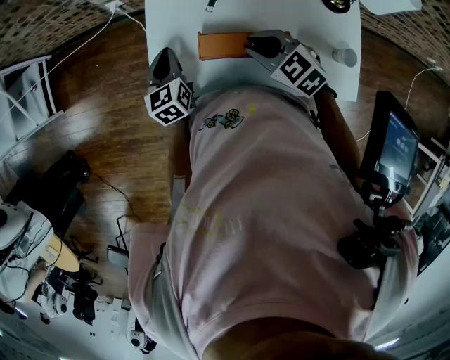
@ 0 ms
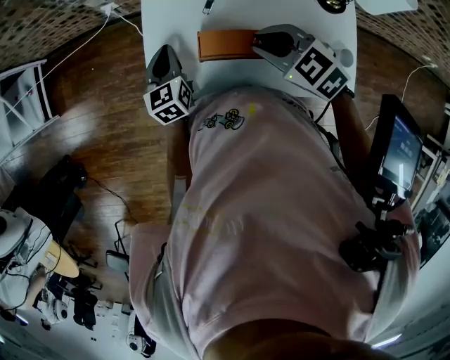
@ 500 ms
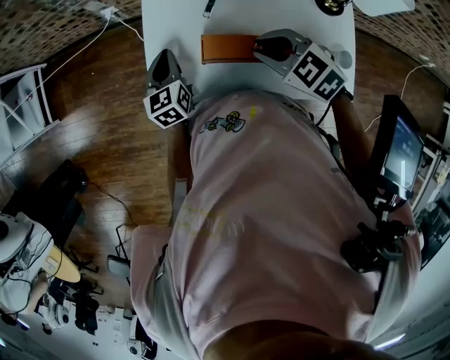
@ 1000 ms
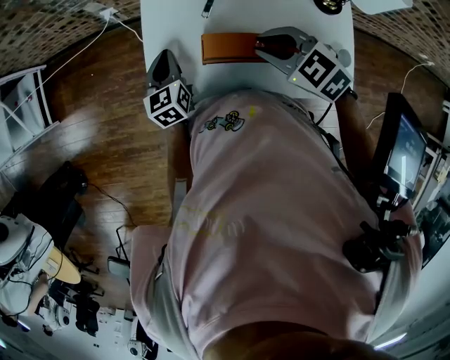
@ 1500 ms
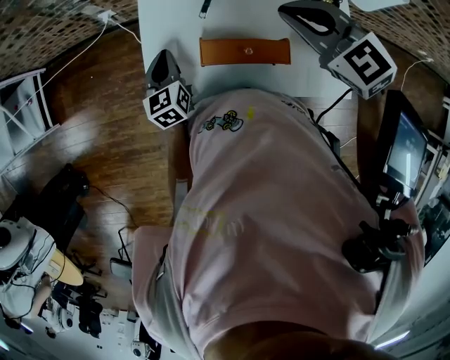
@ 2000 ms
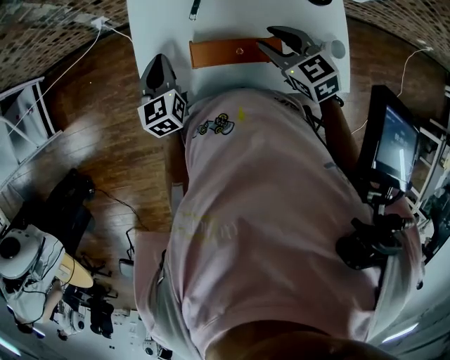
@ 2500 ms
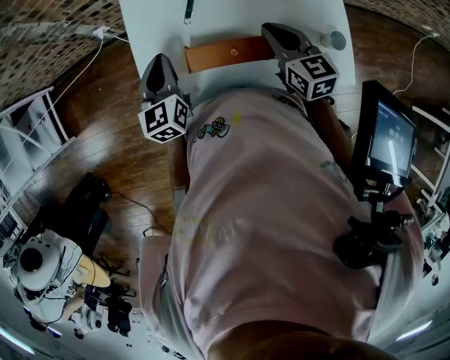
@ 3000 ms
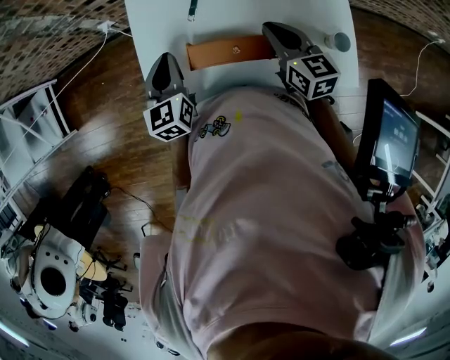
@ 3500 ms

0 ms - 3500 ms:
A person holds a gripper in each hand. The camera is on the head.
0 ms - 2000 ms: The right gripper shifts approximately 15 cm upward.
2000 ms - 3500 ms: The left gripper is displaced upward by roughly 5 cm; the right gripper moves downward, about 15 cm, turns by roughly 40 degrees, and opens and closes again.

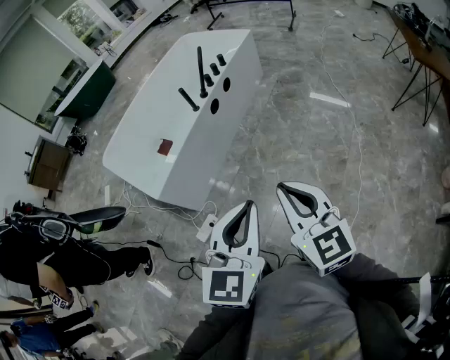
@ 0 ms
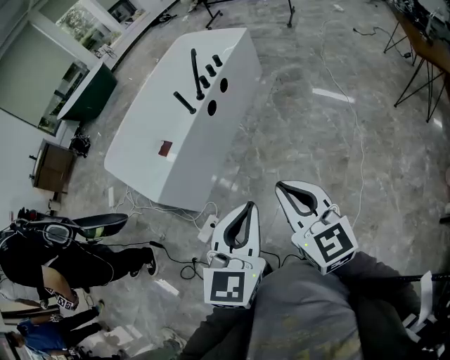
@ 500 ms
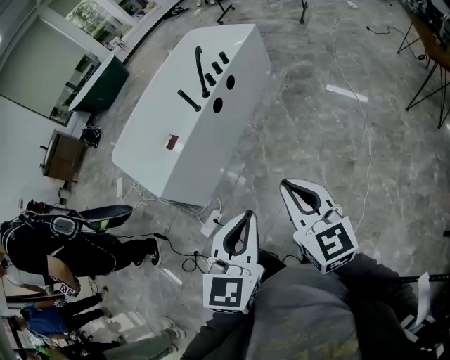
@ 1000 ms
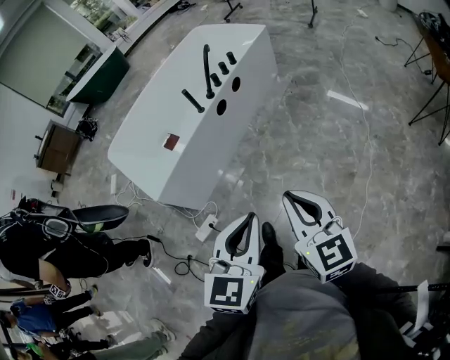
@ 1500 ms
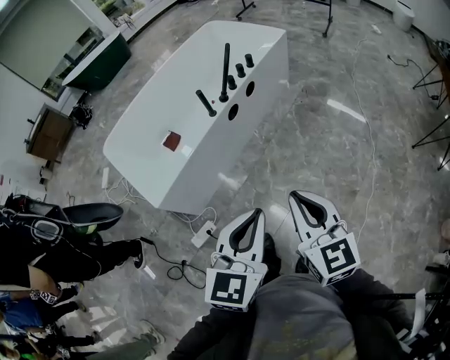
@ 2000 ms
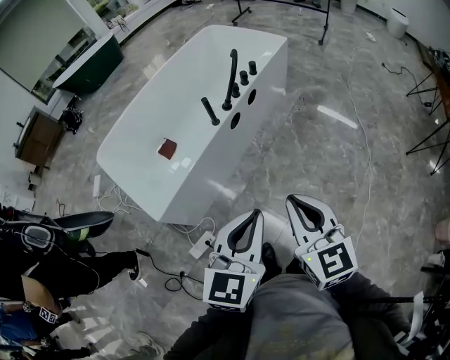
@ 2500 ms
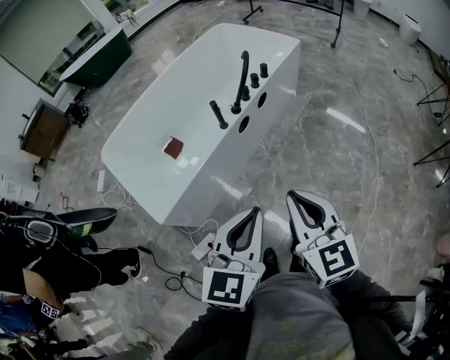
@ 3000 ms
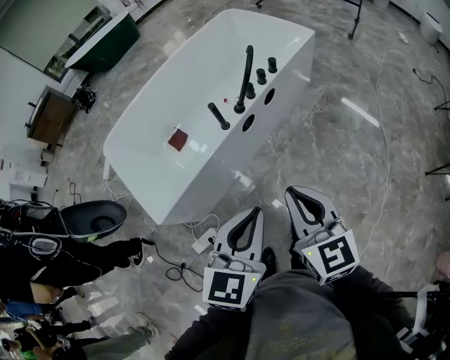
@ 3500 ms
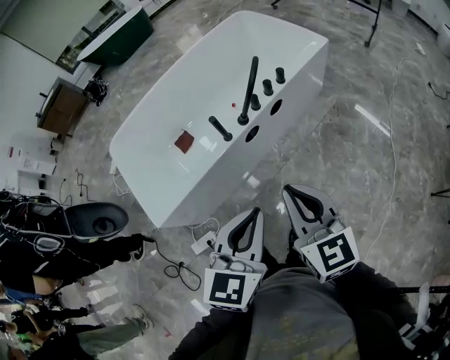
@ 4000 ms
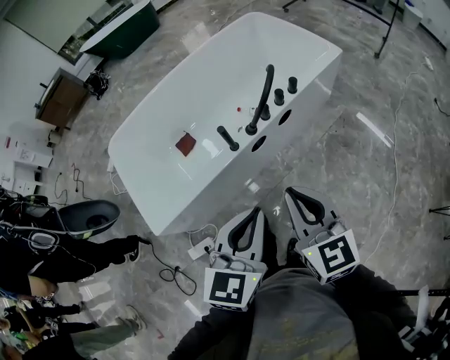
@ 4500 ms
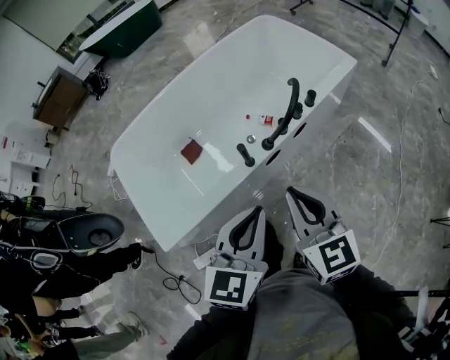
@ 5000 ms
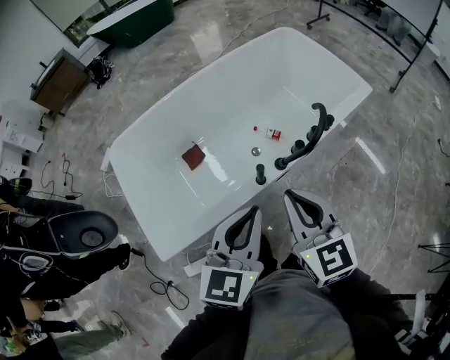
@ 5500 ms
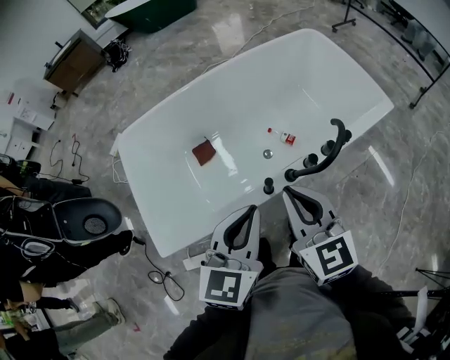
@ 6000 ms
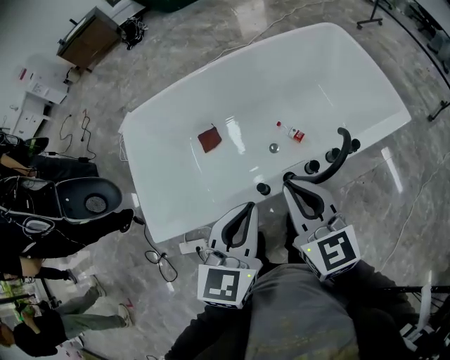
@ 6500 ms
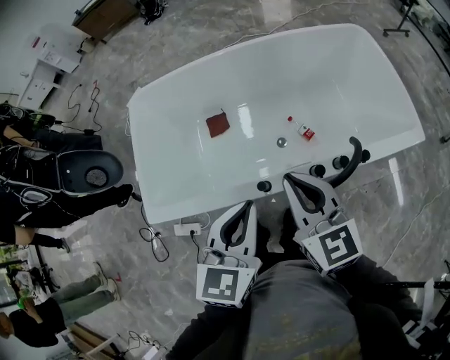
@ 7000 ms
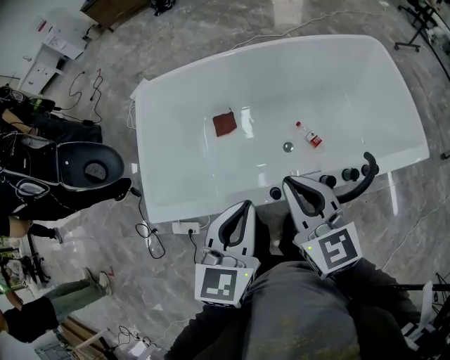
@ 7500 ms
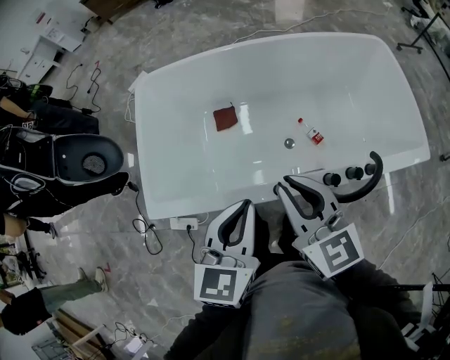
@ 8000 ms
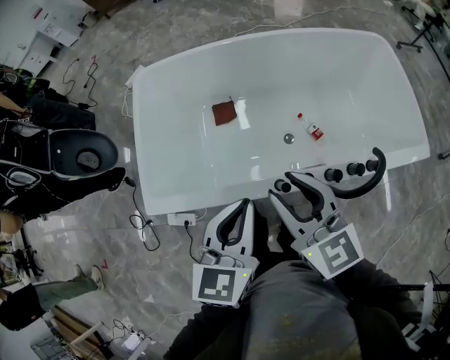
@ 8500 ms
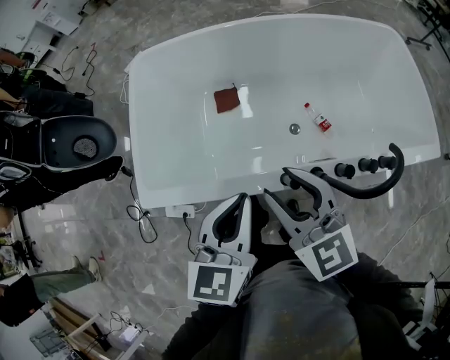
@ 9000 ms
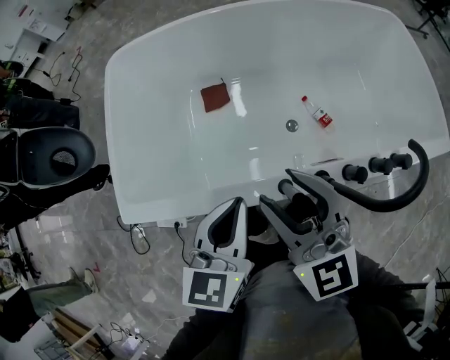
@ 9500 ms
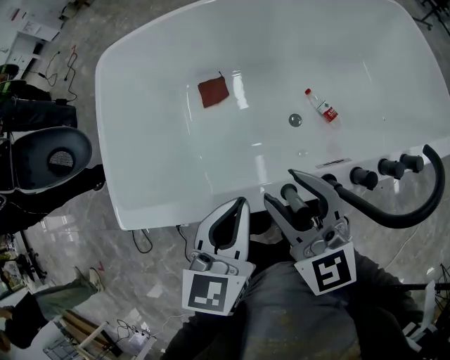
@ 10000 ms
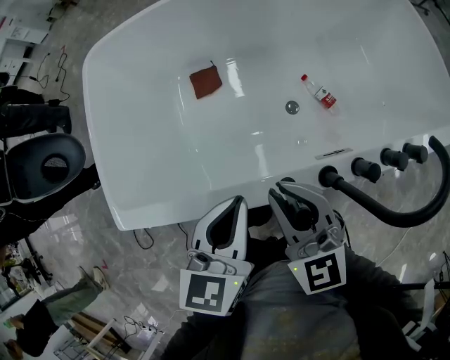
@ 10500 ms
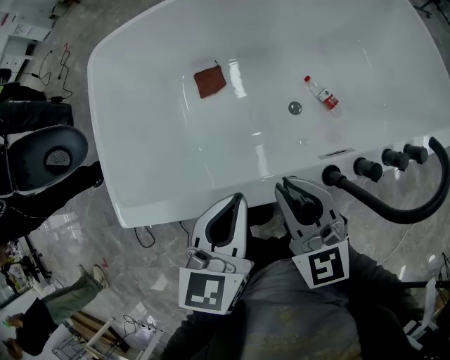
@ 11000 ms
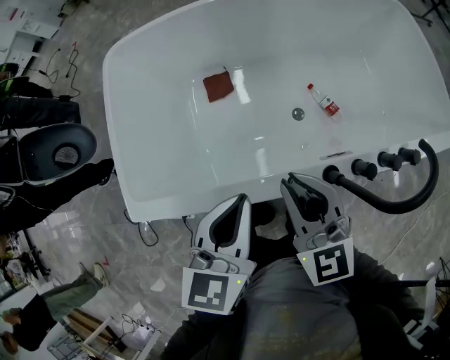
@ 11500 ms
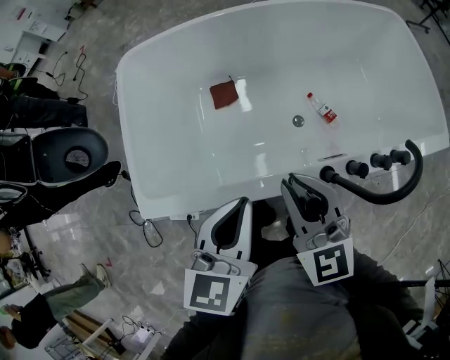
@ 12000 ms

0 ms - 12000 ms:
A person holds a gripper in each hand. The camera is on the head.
0 ms - 2000 ms: Both grippers travel together forward, some 15 cm.
2000 ms - 4000 ms: The grippers both shift forward by about 25 cm.
4000 ms - 6000 ms: The grippers both shift forward and to the left by approximately 30 cm.
6000 ms - 8000 ms: The two grippers go some 5 cm forward. The left gripper turns by roughly 20 degrees, while the right gripper turns by some 30 degrees.
8000 ms - 10000 ms: Both grippers move downward, some 20 cm. The right gripper opens its fingers.
10000 ms - 12000 ms: The grippers both shift upward by about 10 cm. The right gripper closes its fingers.

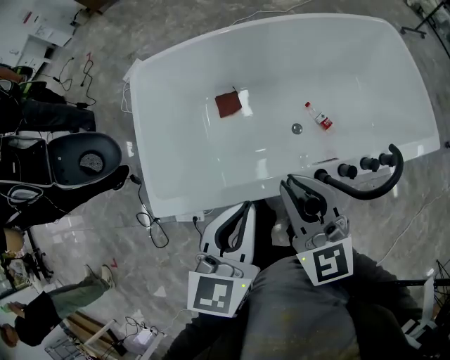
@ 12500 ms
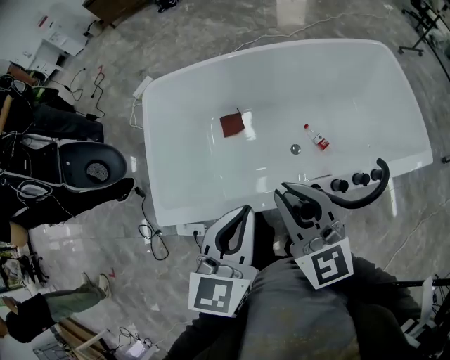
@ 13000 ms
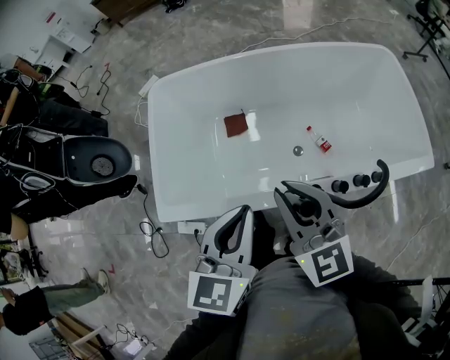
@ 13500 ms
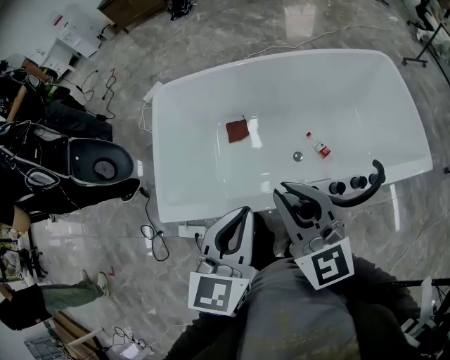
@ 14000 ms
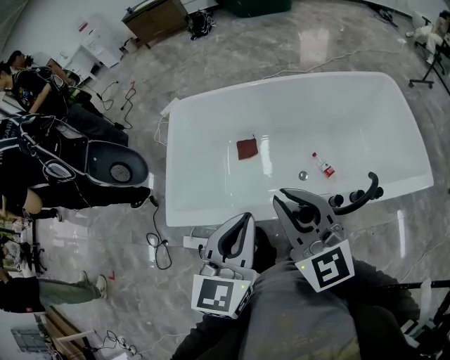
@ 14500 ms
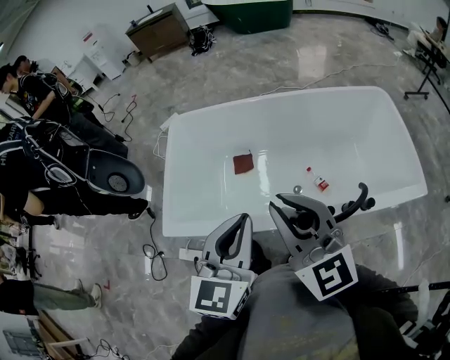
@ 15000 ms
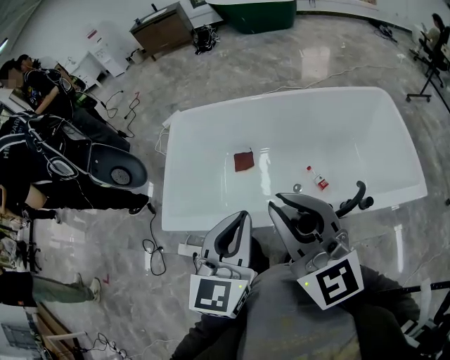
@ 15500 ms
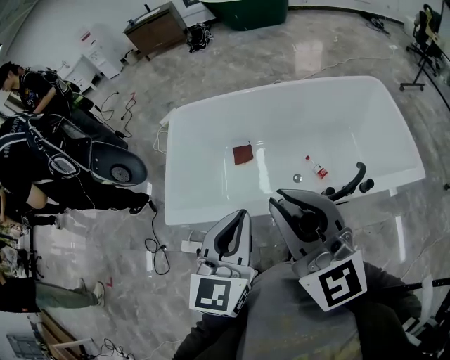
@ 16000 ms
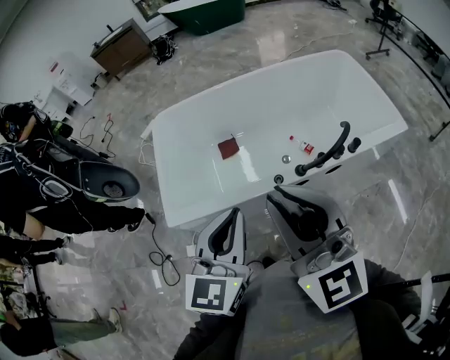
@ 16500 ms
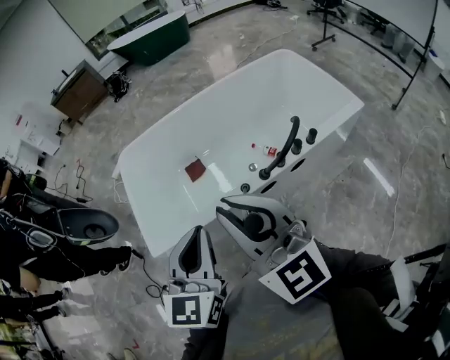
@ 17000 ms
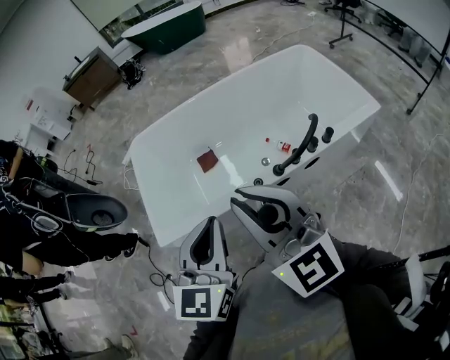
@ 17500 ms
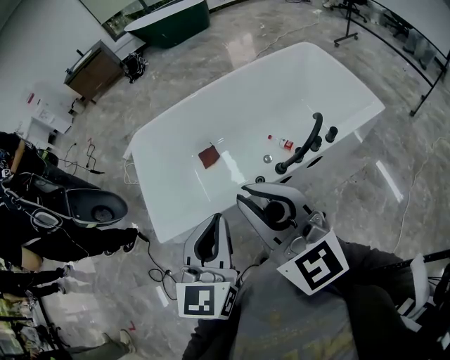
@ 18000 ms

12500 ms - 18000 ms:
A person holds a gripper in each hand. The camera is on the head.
12500 ms - 14500 ms: Both grippers travel together upward and backward, some 10 cm.
14500 ms - 16000 ms: The left gripper goes approximately 5 cm backward. Meanwhile the right gripper shifts some 10 cm upward and backward.
16000 ms - 18000 ms: The two grippers go roughly 5 cm backward.

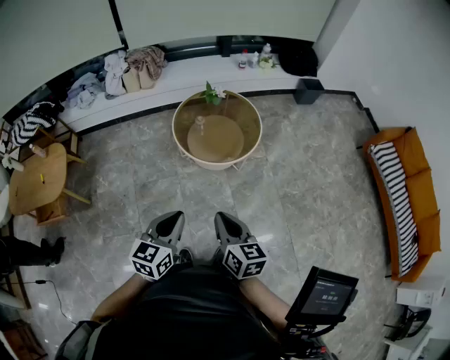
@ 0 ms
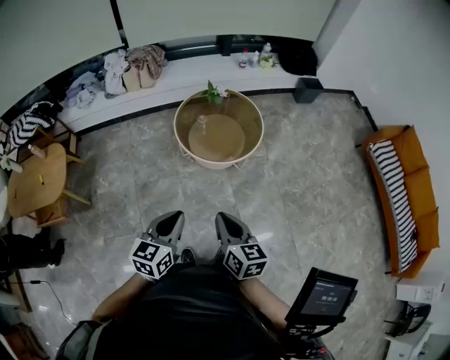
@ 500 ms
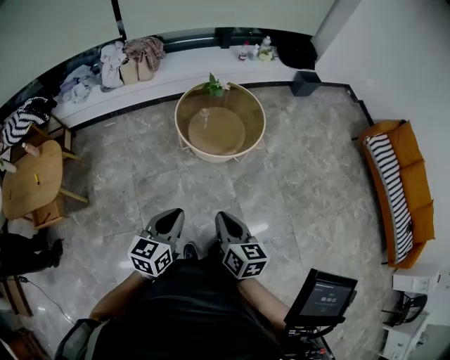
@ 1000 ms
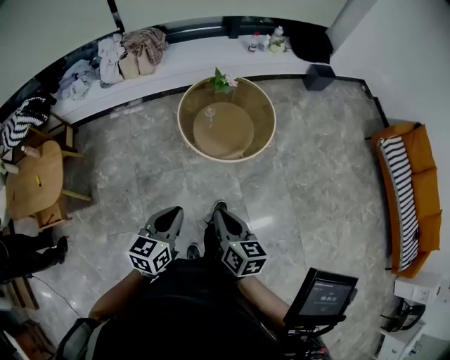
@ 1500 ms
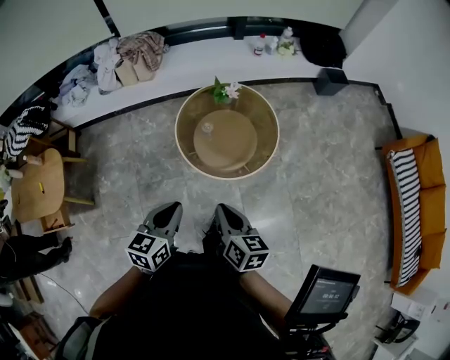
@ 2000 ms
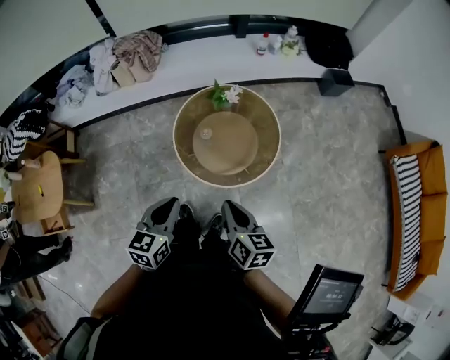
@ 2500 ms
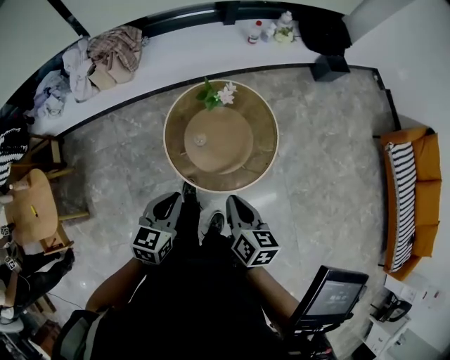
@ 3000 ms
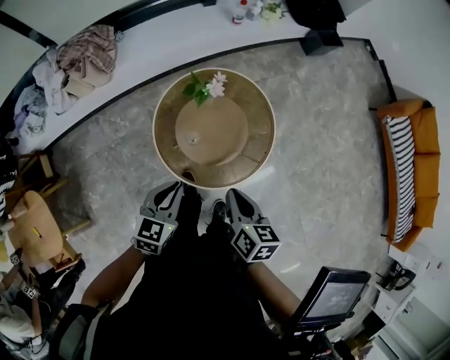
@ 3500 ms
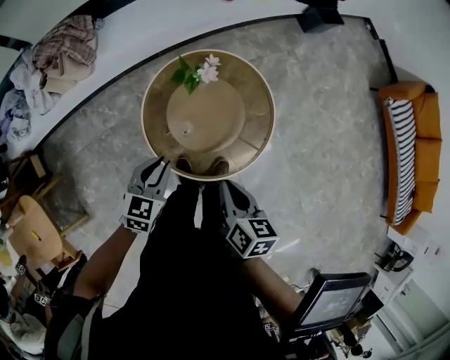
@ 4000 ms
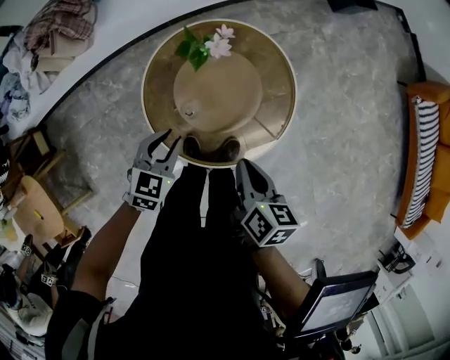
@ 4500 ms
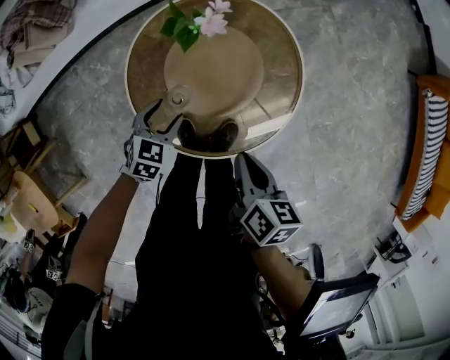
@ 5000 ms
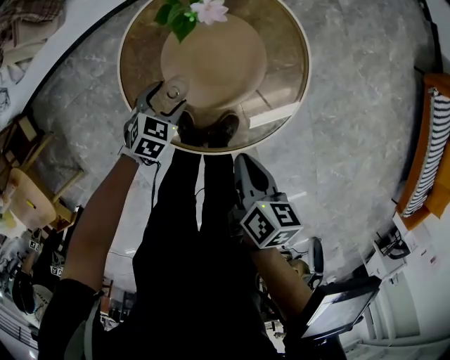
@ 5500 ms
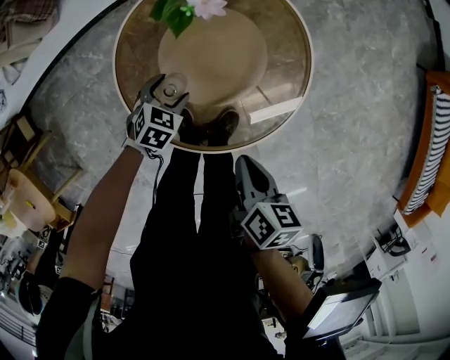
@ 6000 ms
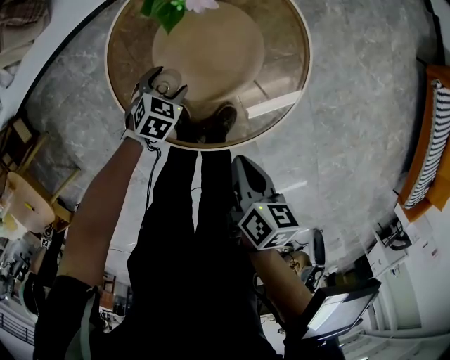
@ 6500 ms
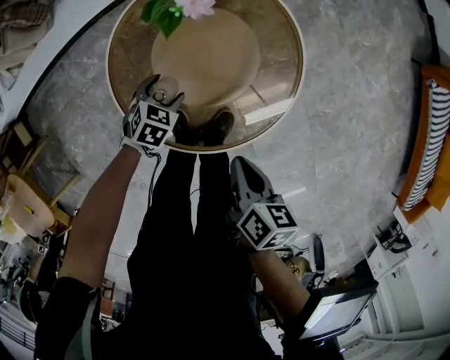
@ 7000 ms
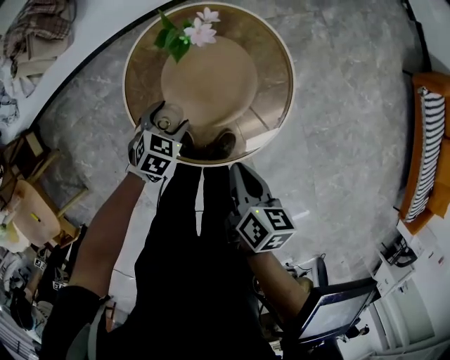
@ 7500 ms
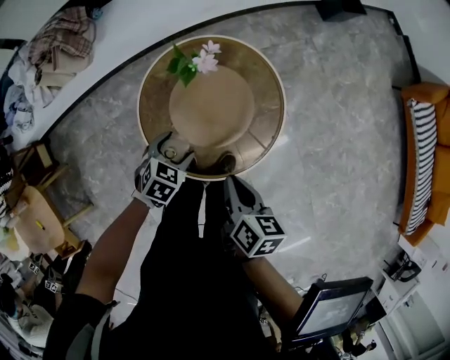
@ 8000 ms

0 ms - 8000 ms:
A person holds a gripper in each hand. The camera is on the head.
0 ms - 2000 ms: Both grippers travel together forward, about 25 cm.
2000 ms - 4000 ms: Both grippers move forward and downward, some 35 cm. The left gripper swivels roughly 30 degrees. Meanwhile the right gripper rotates approximately 20 degrees.
4000 ms - 6000 ms: The left gripper is displaced downward by roughly 30 cm, turns by about 30 degrees, and opens its fingers; the right gripper heads downward, covering some 20 cm.
6000 ms - 8000 ms: The right gripper moves upward, some 10 cm; the left gripper goes roughly 20 cm upward.
